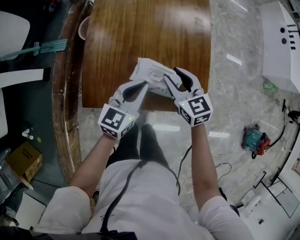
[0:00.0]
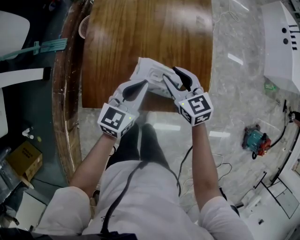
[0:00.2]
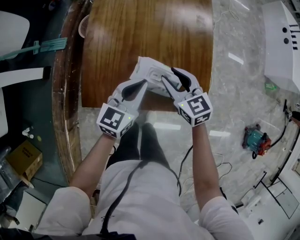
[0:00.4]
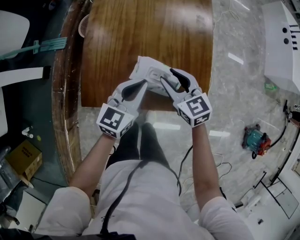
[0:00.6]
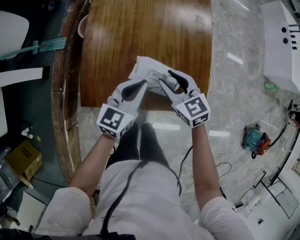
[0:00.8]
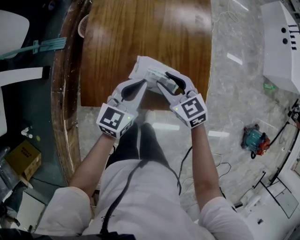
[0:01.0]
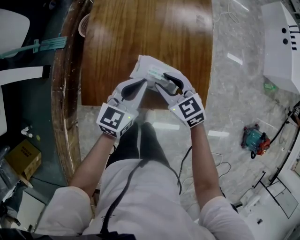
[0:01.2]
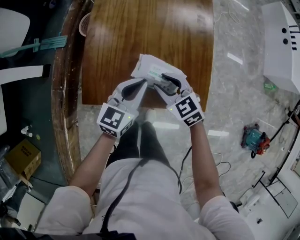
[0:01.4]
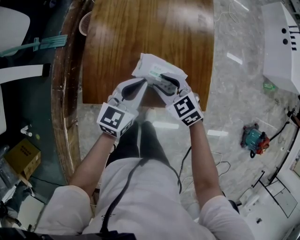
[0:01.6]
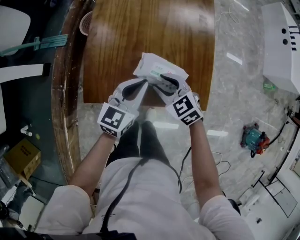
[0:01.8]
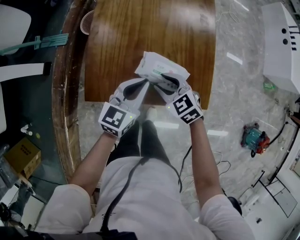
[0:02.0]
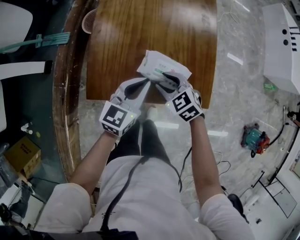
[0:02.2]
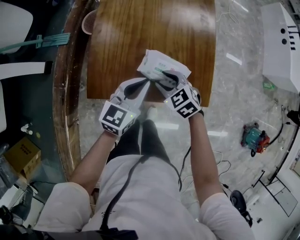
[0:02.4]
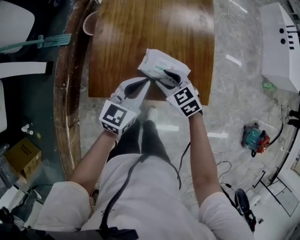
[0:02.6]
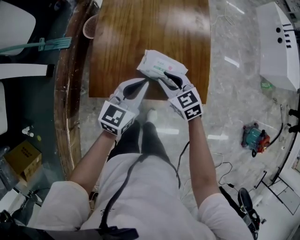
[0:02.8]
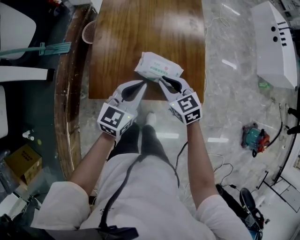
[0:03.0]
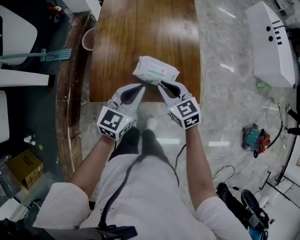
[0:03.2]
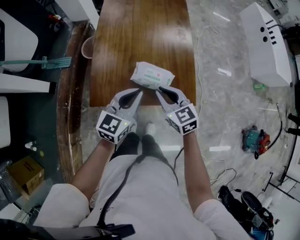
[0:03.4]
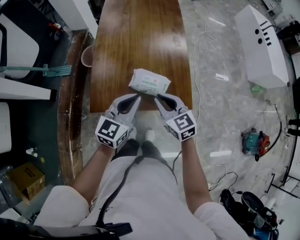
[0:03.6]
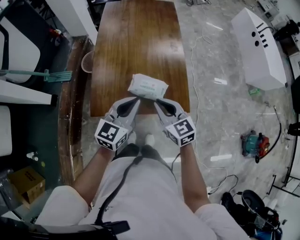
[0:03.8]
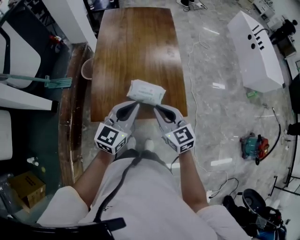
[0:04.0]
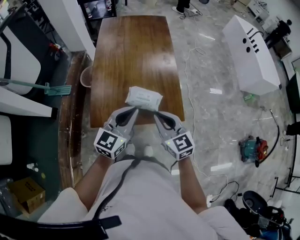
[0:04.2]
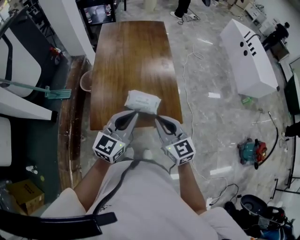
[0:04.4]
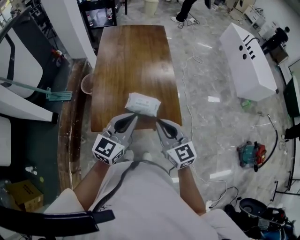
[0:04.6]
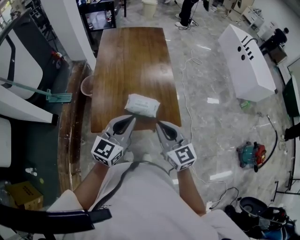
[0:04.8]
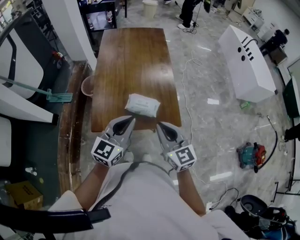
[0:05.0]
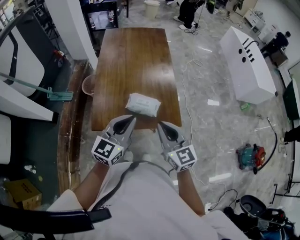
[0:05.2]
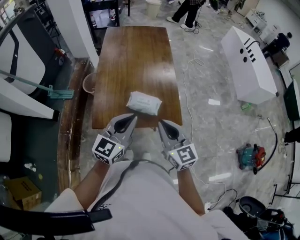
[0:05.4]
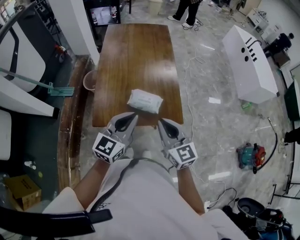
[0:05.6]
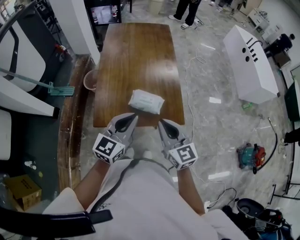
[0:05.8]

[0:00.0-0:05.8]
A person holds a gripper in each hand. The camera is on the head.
0:00.0 to 0:01.4: The right gripper changes place by some 5 cm, and changes its angle by about 20 degrees.
0:01.4 to 0:02.8: The left gripper shifts by approximately 5 cm.
0:02.8 to 0:04.4: The two grippers go some 20 cm upward and backward. The right gripper swivels some 30 degrees, and closes its fingers.
0:04.4 to 0:05.8: The grippers make only small movements.

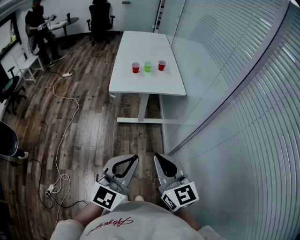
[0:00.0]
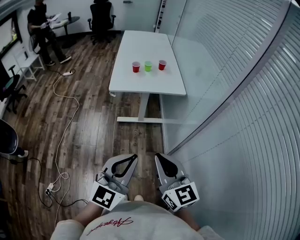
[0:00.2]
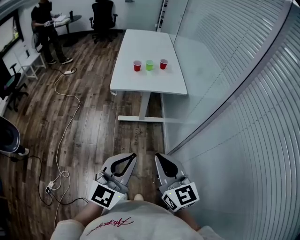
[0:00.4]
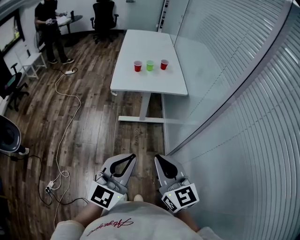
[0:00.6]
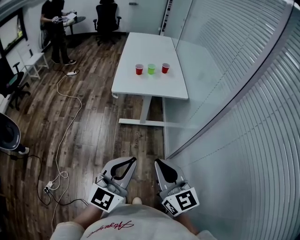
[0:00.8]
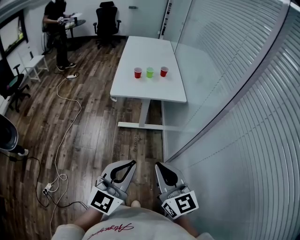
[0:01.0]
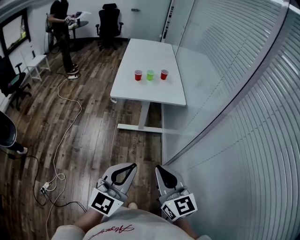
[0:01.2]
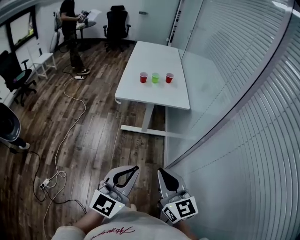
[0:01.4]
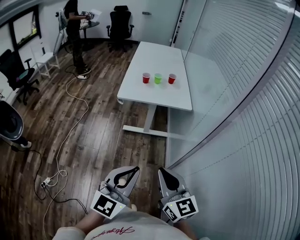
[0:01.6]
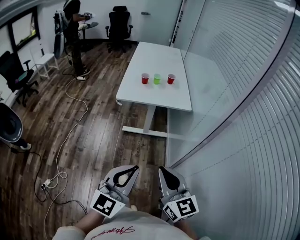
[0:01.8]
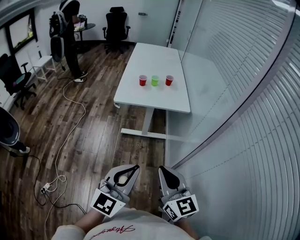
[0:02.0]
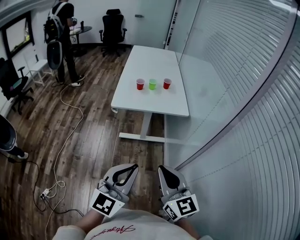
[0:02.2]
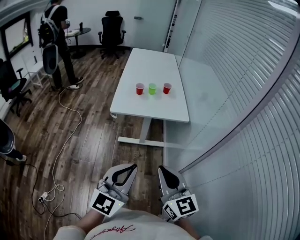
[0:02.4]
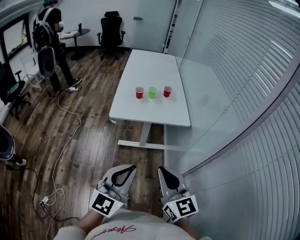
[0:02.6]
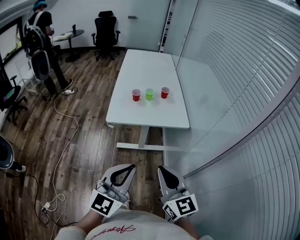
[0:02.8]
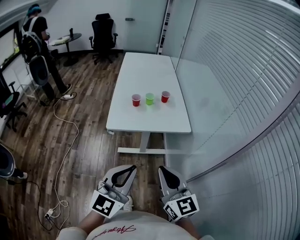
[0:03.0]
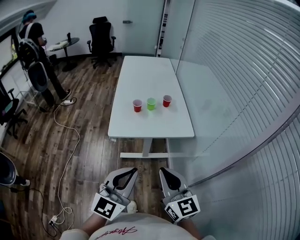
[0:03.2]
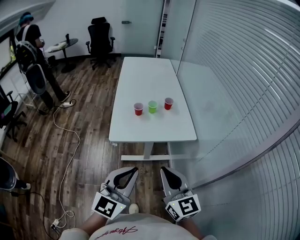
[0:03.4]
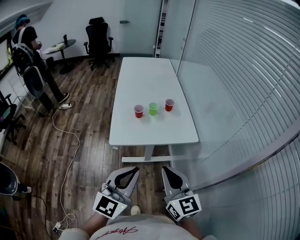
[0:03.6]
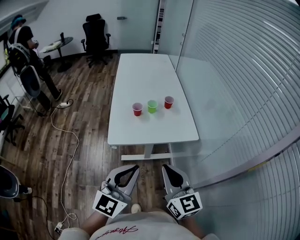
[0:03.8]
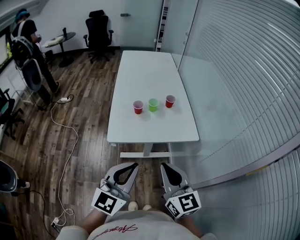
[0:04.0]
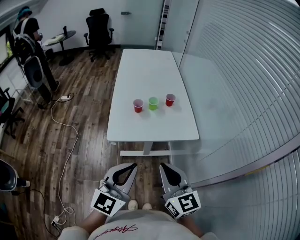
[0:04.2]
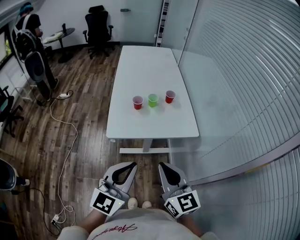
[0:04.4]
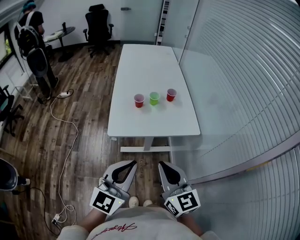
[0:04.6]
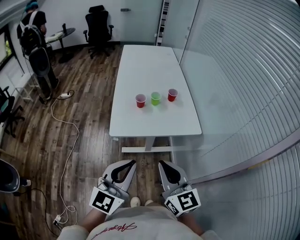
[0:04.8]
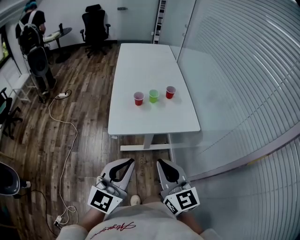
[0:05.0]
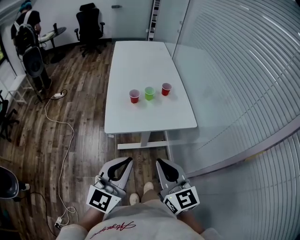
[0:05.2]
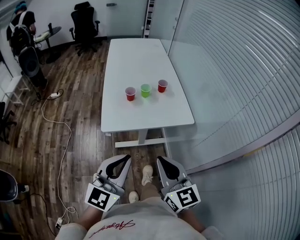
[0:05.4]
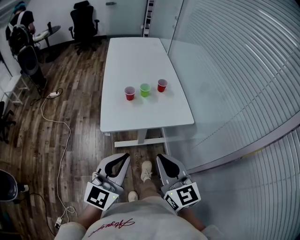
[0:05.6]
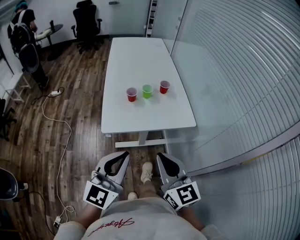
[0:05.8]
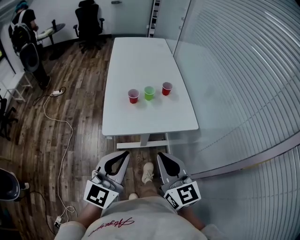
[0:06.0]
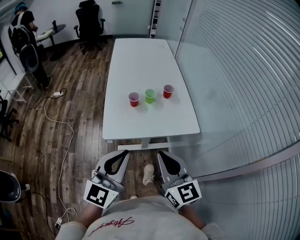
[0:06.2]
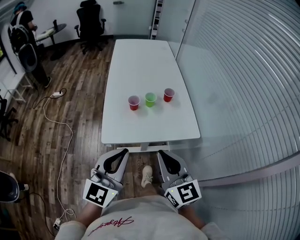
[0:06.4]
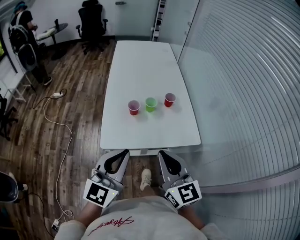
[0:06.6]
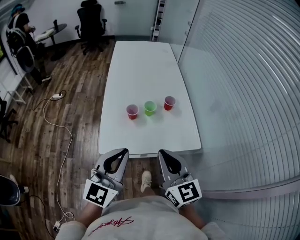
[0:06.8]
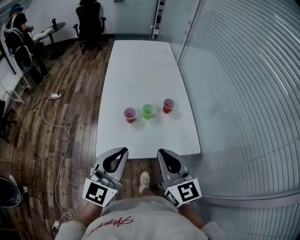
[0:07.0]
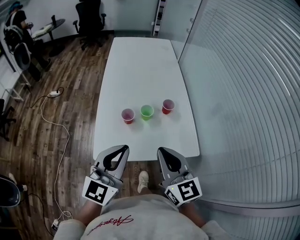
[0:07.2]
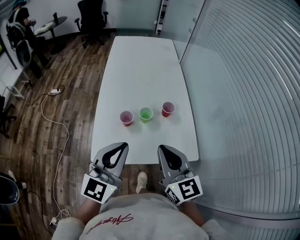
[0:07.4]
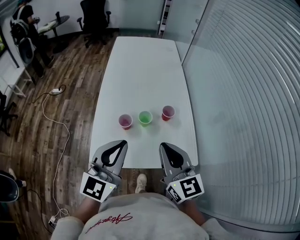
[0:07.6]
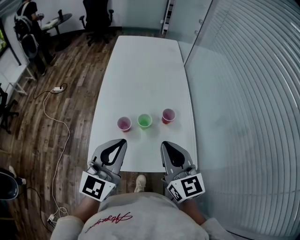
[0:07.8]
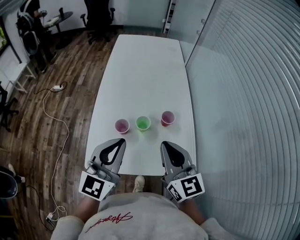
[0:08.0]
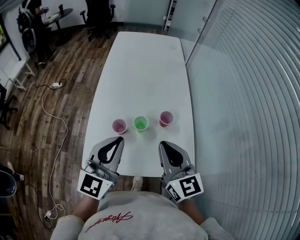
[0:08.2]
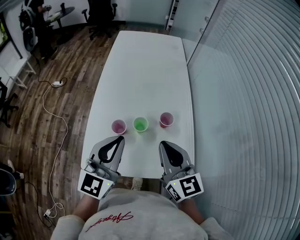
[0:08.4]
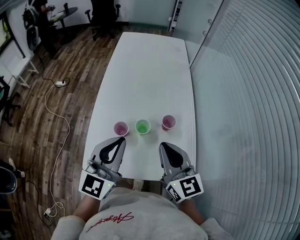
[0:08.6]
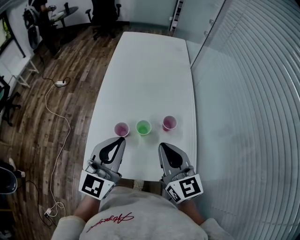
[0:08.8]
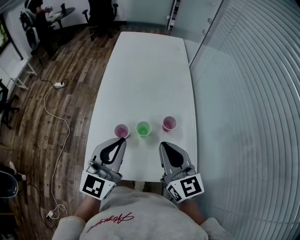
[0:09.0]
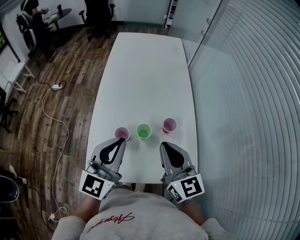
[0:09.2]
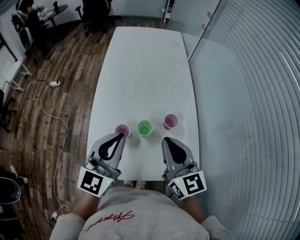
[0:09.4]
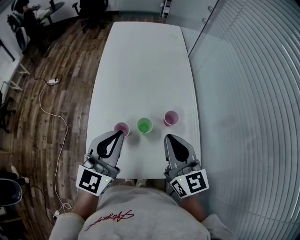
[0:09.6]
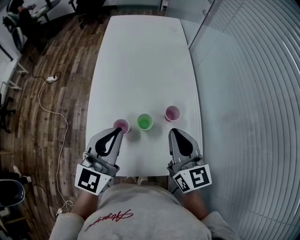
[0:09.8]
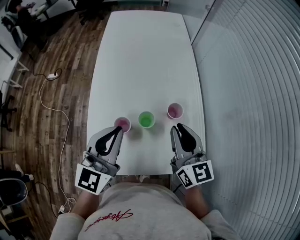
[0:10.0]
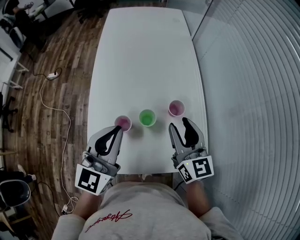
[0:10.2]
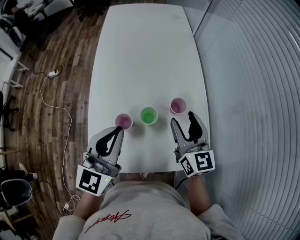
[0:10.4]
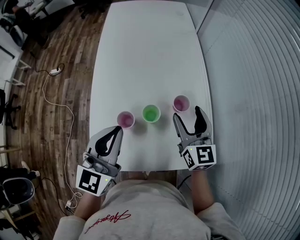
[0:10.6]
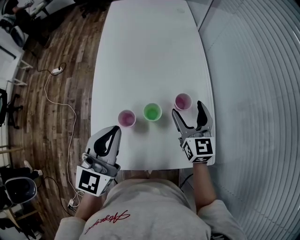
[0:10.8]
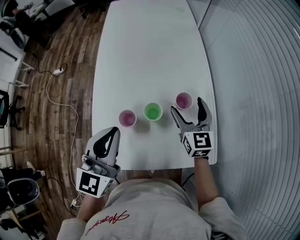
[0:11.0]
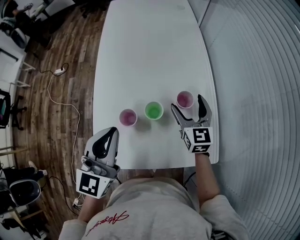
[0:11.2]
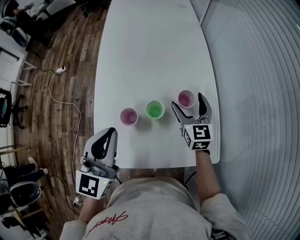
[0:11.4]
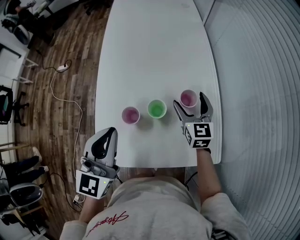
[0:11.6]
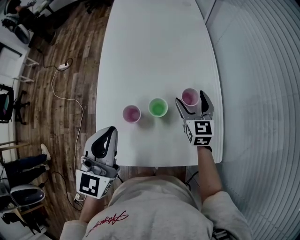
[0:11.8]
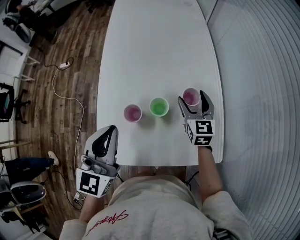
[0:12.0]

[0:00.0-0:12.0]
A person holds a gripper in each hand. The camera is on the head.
0:00.0 to 0:01.6: The right gripper moves to the right, roughly 5 cm.
0:01.6 to 0:03.0: Both grippers move forward, some 25 cm.
0:03.0 to 0:04.4: The two grippers go roughly 10 cm forward.
0:04.4 to 0:06.0: The left gripper moves roughly 5 cm.
0:06.0 to 0:07.6: The two grippers go roughly 30 cm forward.
0:07.6 to 0:09.0: Both grippers travel together forward, about 10 cm.
0:09.0 to 0:10.4: The left gripper travels forward by some 5 cm; the right gripper heads forward and downward, covering about 10 cm, and opens.
0:10.4 to 0:12.0: The right gripper heads downward and forward, covering roughly 15 cm.

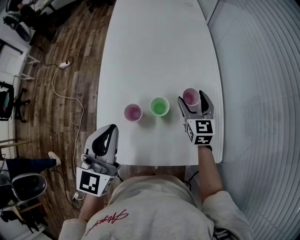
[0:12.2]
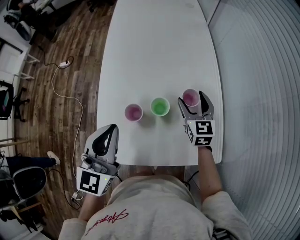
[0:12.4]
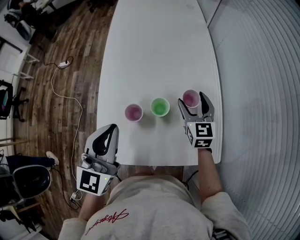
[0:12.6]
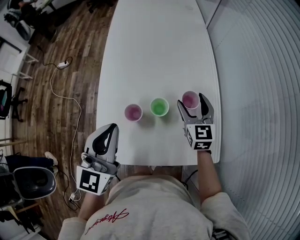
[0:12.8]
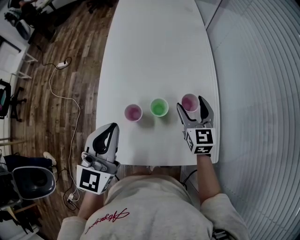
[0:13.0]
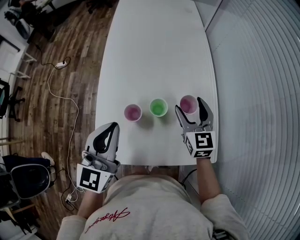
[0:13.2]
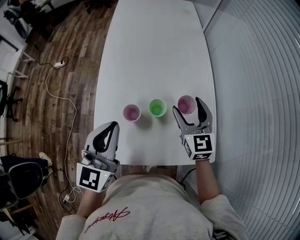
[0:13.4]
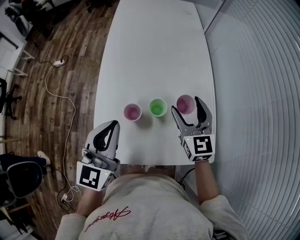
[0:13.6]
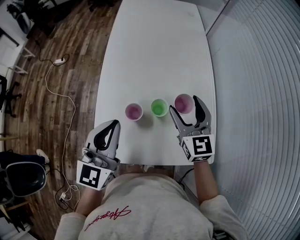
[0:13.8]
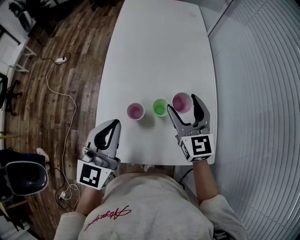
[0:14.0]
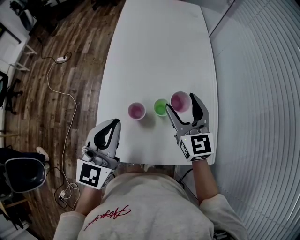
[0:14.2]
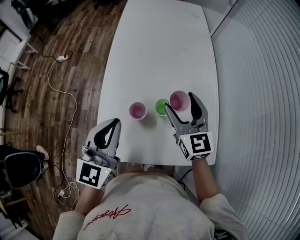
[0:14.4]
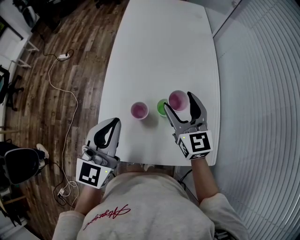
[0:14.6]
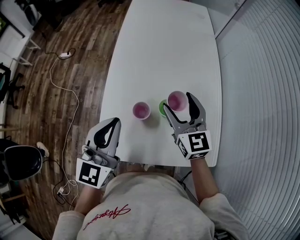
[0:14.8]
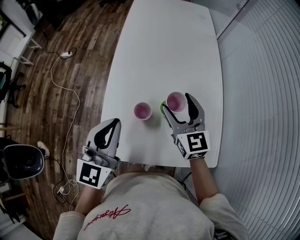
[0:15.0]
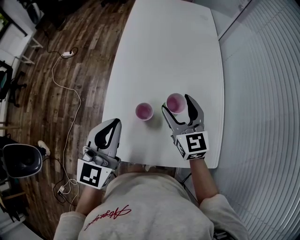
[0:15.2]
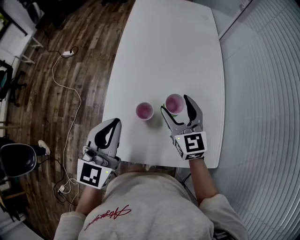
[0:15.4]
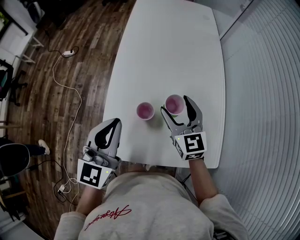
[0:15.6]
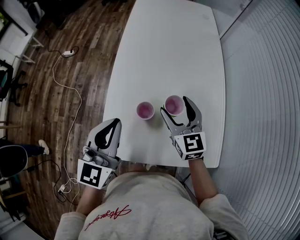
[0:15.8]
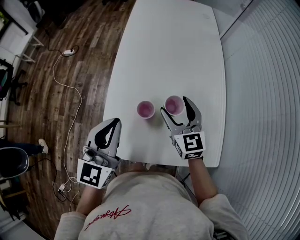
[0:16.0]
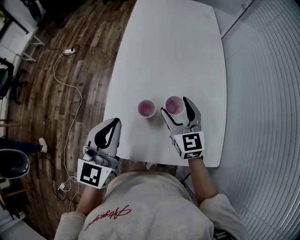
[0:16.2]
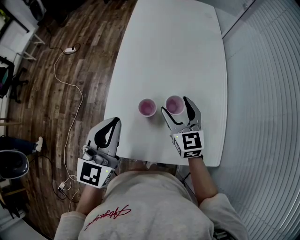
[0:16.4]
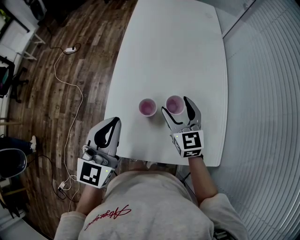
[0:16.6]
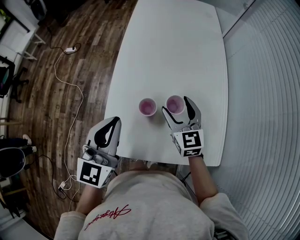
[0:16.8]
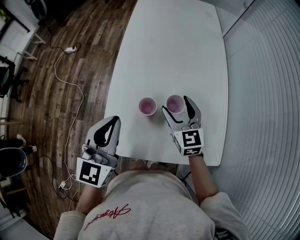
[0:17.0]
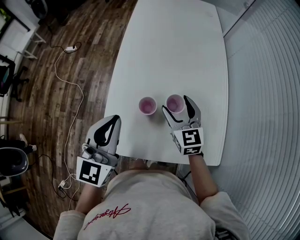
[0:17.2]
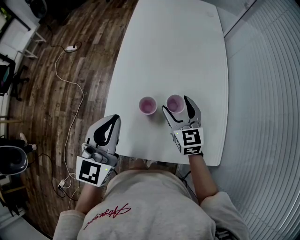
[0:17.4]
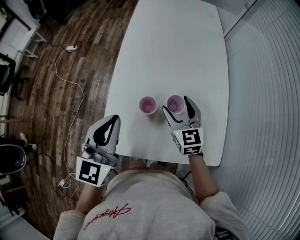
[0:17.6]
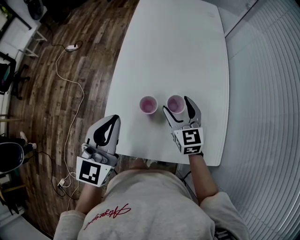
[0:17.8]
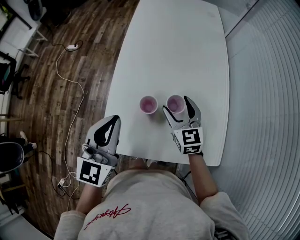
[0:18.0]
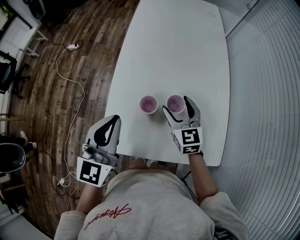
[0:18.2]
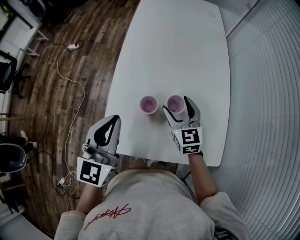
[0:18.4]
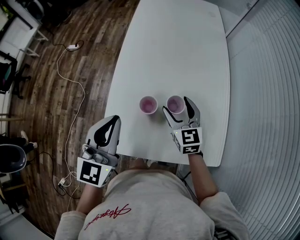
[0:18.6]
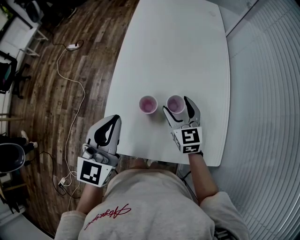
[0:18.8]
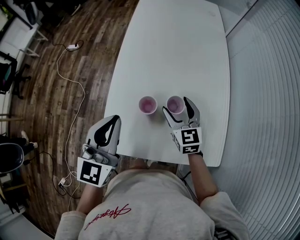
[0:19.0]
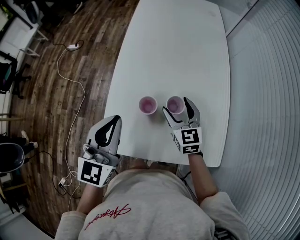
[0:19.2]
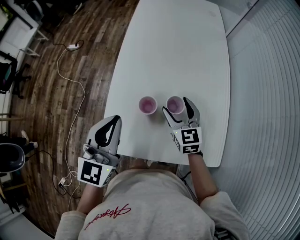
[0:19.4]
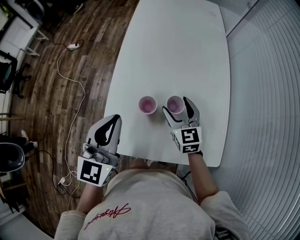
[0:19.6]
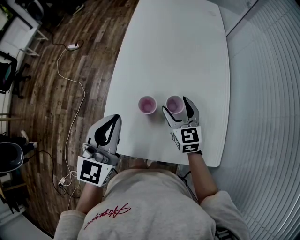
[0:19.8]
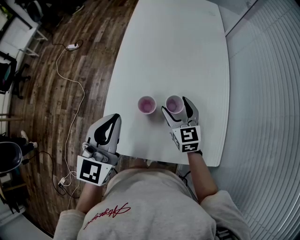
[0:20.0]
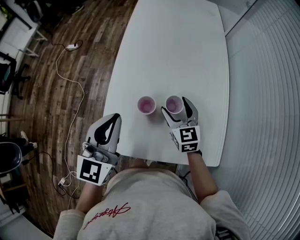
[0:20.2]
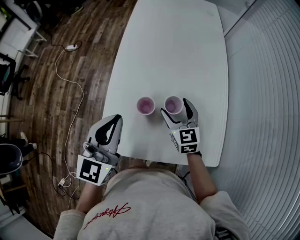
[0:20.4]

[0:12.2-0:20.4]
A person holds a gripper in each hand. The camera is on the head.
0:12.2 to 0:13.8: The right gripper moves upward, backward and to the left, some 15 cm.
0:13.8 to 0:15.4: The right gripper goes approximately 10 cm to the left.
0:15.4 to 0:17.2: The right gripper shifts about 5 cm downward.
0:17.2 to 0:20.4: The grippers stay close to where they were, moving slightly.
